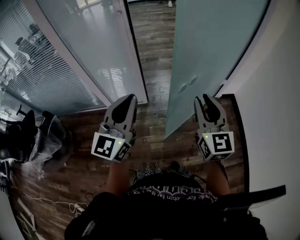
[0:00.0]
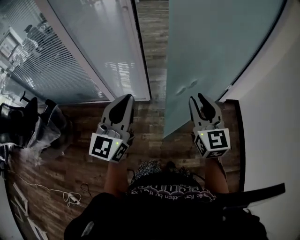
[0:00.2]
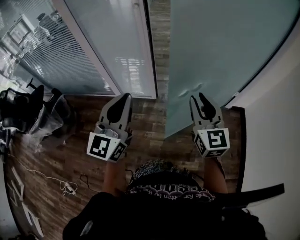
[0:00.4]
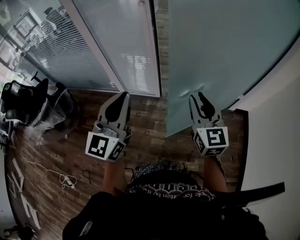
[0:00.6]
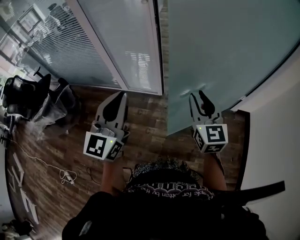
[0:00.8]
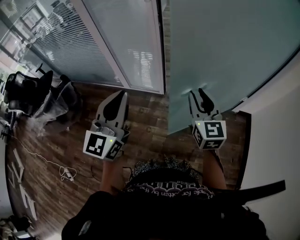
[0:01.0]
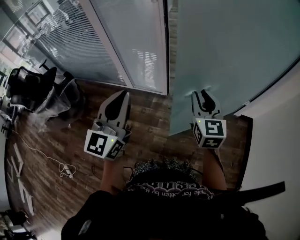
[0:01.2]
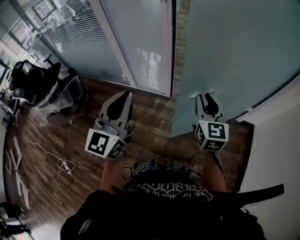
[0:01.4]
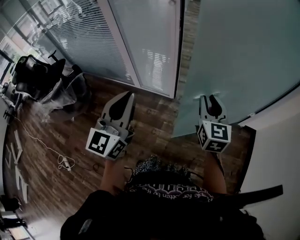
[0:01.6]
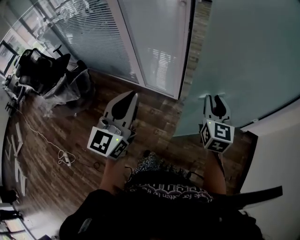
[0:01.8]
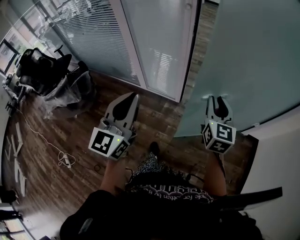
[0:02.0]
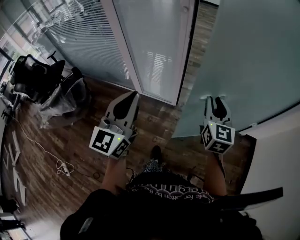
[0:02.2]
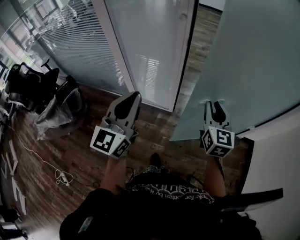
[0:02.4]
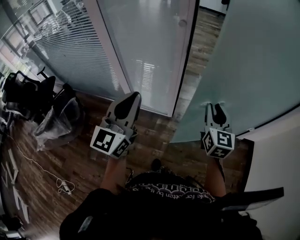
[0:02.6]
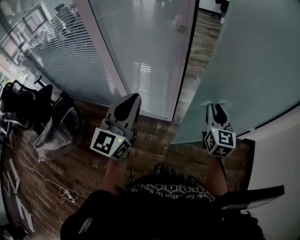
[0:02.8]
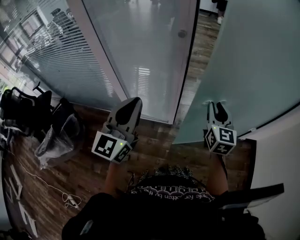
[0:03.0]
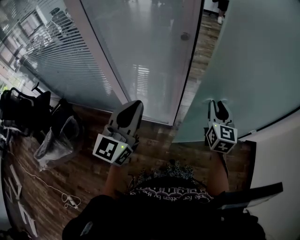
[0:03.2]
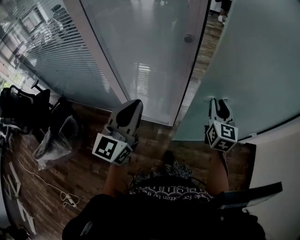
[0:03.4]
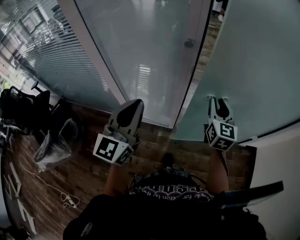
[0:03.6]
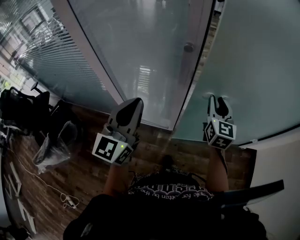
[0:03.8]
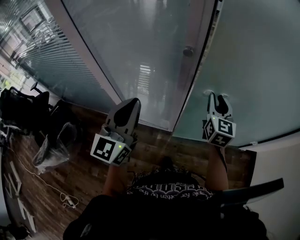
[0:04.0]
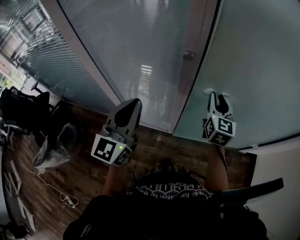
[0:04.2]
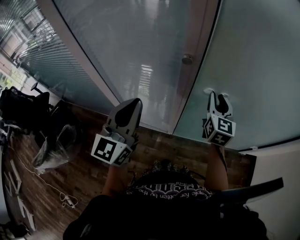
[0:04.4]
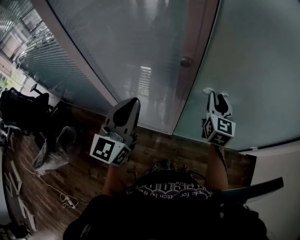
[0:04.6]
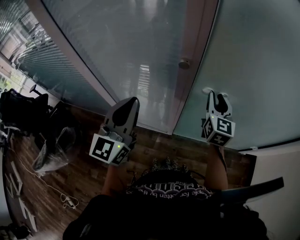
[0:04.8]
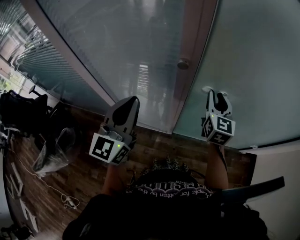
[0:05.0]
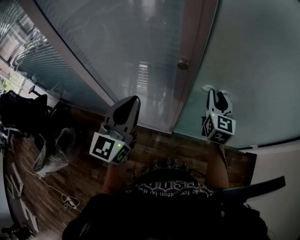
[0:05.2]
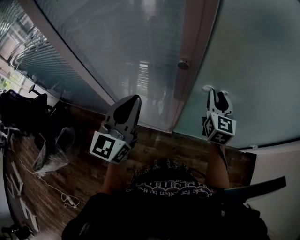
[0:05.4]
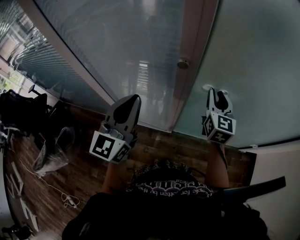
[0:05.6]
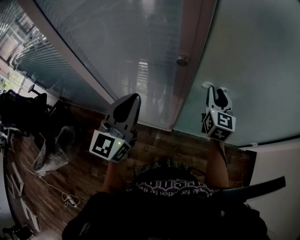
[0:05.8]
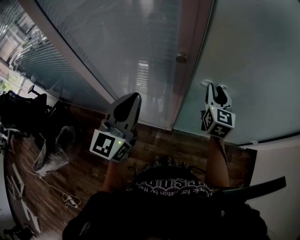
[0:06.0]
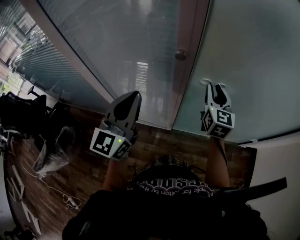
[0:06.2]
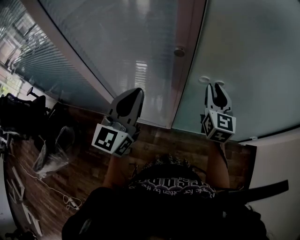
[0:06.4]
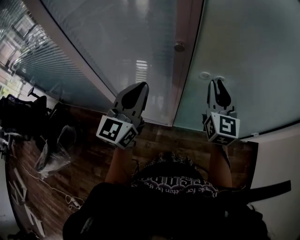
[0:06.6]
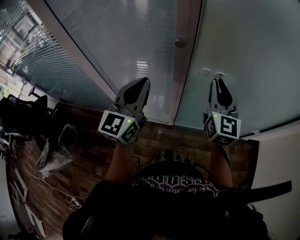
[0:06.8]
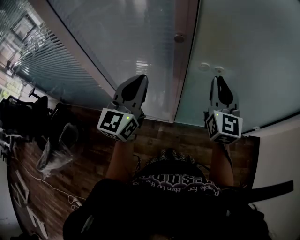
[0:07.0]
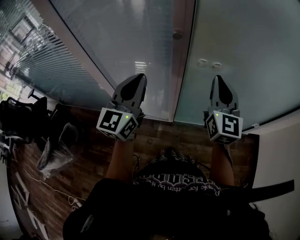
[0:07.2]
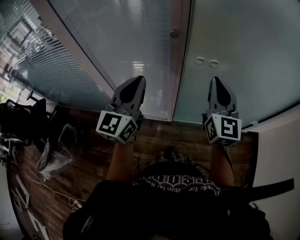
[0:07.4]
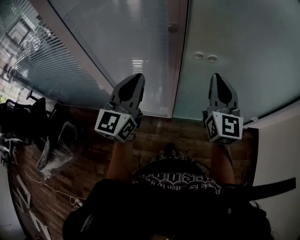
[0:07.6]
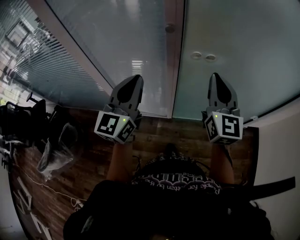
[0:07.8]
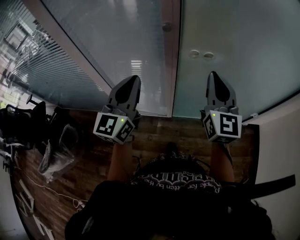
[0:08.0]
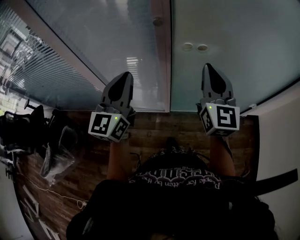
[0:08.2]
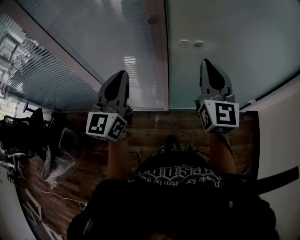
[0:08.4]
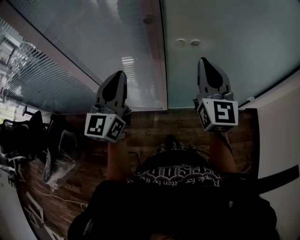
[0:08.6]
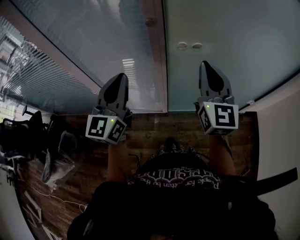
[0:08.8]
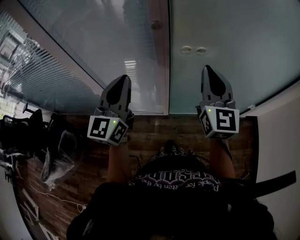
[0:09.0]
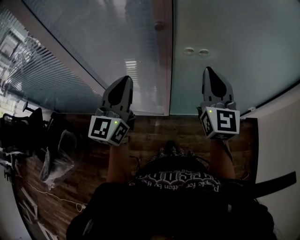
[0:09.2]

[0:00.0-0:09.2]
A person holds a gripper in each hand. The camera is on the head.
0:00.0 to 0:01.6: The left gripper changes its angle by some 20 degrees. Meanwhile the right gripper heads forward and downward, covering roughly 10 cm.
0:01.6 to 0:03.0: The left gripper heads forward and to the left, covering roughly 25 cm. The right gripper is displaced forward by some 20 cm.
0:03.0 to 0:04.6: The two grippers go some 20 cm forward.
0:04.6 to 0:06.2: The grippers make only small movements.
0:06.2 to 0:07.6: The left gripper changes place by approximately 5 cm; the right gripper moves backward and upward, about 20 cm, and closes its fingers.
0:07.6 to 0:09.2: The two grippers keep their place.

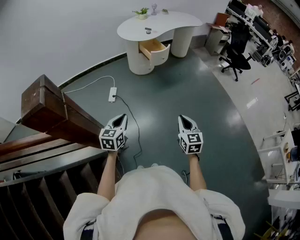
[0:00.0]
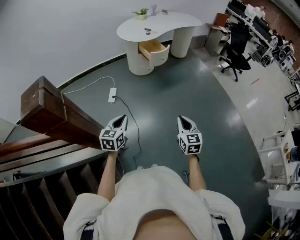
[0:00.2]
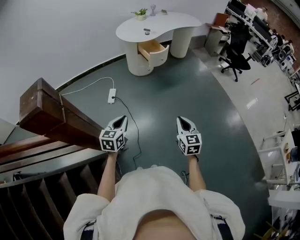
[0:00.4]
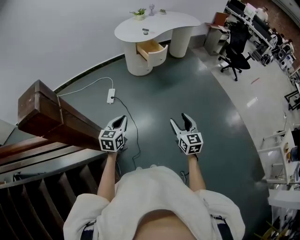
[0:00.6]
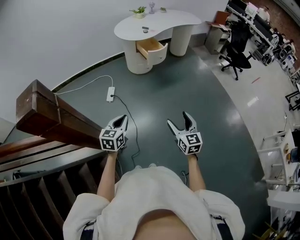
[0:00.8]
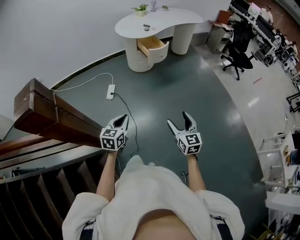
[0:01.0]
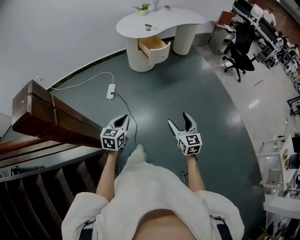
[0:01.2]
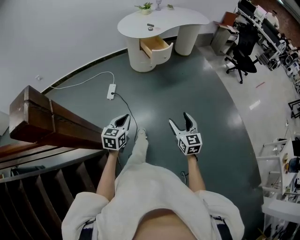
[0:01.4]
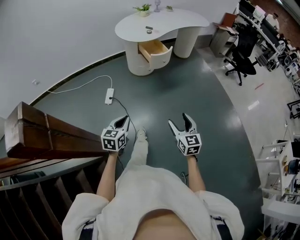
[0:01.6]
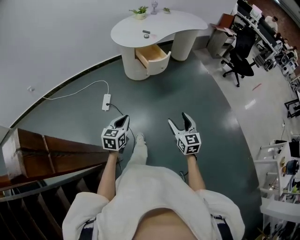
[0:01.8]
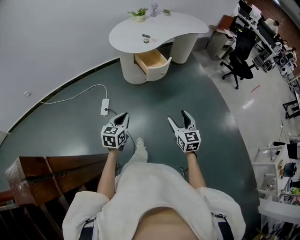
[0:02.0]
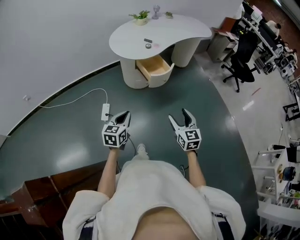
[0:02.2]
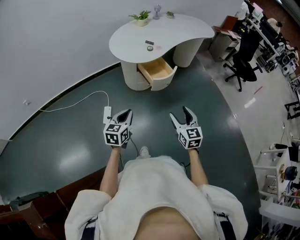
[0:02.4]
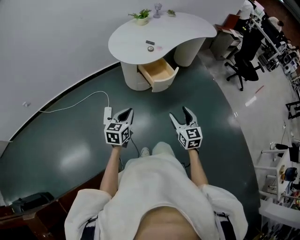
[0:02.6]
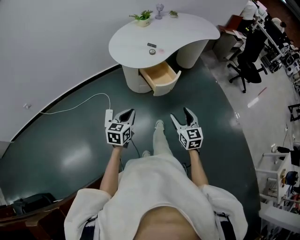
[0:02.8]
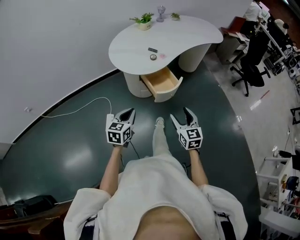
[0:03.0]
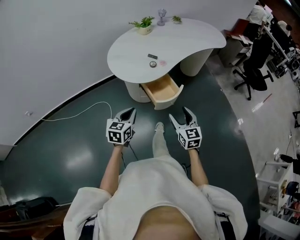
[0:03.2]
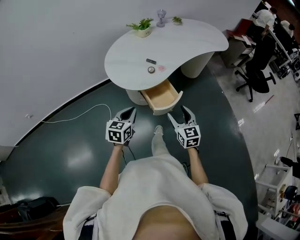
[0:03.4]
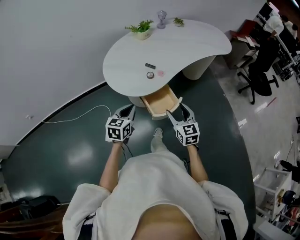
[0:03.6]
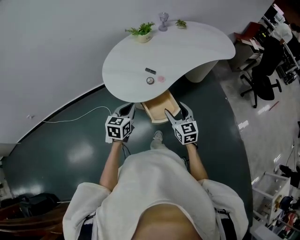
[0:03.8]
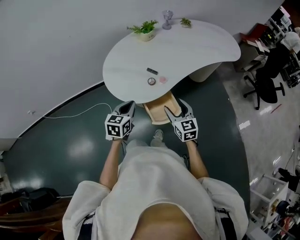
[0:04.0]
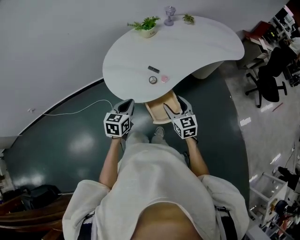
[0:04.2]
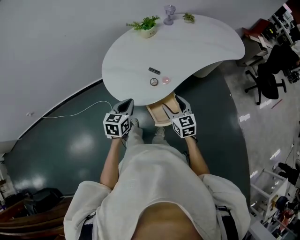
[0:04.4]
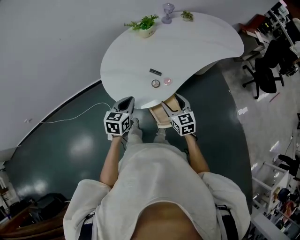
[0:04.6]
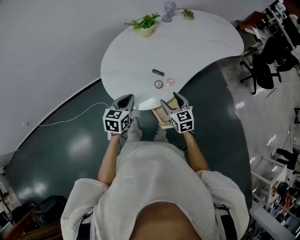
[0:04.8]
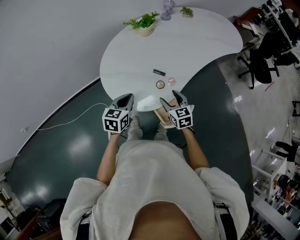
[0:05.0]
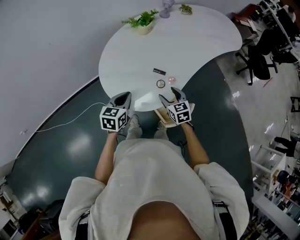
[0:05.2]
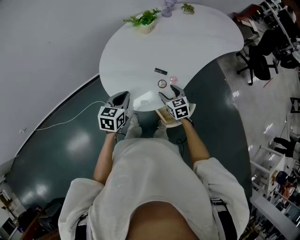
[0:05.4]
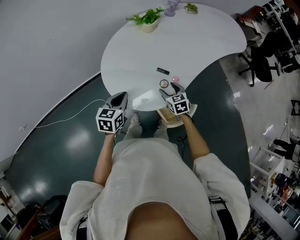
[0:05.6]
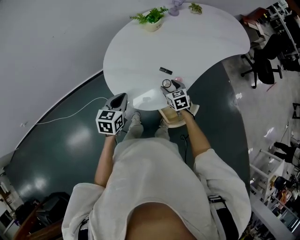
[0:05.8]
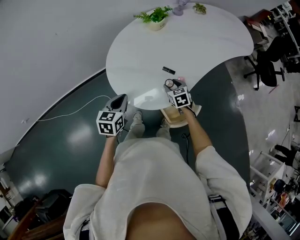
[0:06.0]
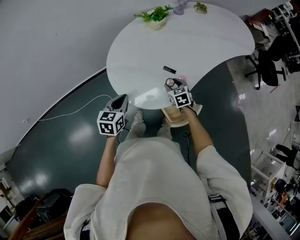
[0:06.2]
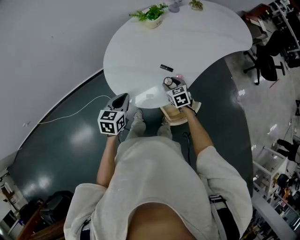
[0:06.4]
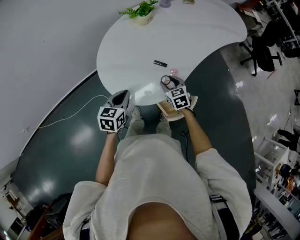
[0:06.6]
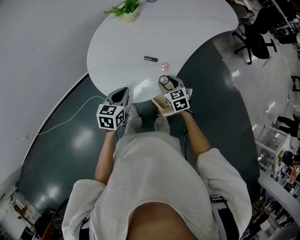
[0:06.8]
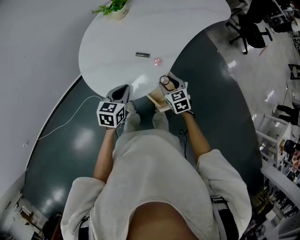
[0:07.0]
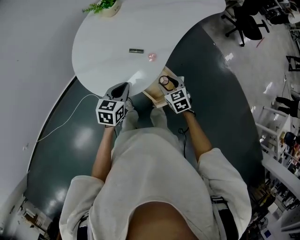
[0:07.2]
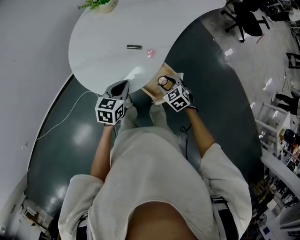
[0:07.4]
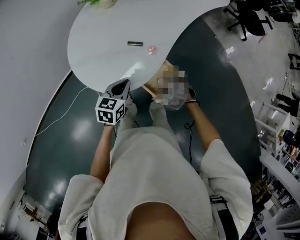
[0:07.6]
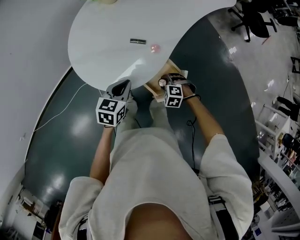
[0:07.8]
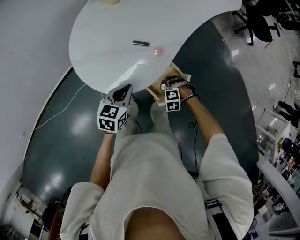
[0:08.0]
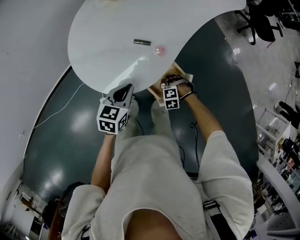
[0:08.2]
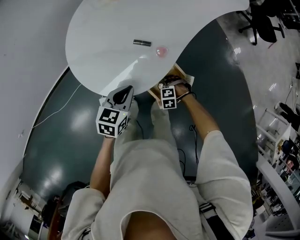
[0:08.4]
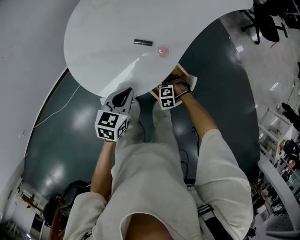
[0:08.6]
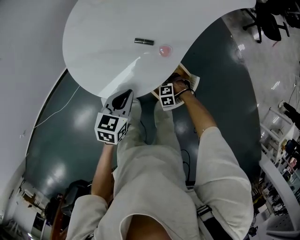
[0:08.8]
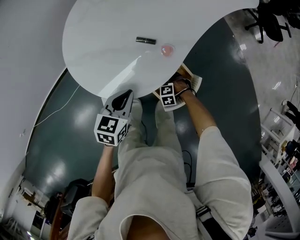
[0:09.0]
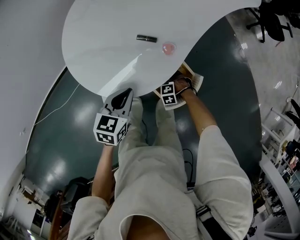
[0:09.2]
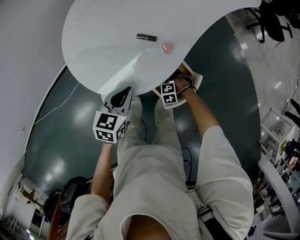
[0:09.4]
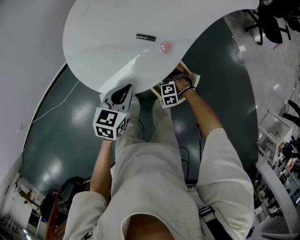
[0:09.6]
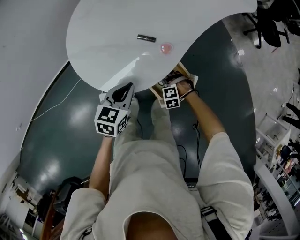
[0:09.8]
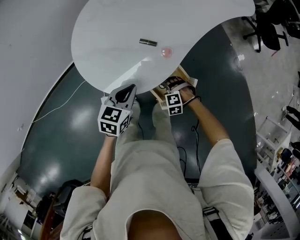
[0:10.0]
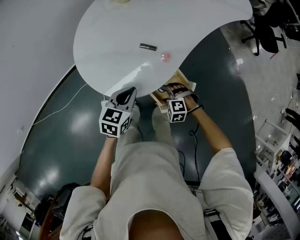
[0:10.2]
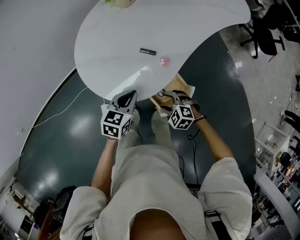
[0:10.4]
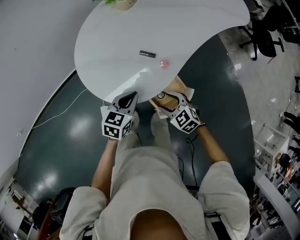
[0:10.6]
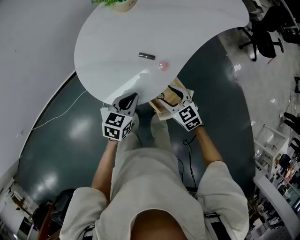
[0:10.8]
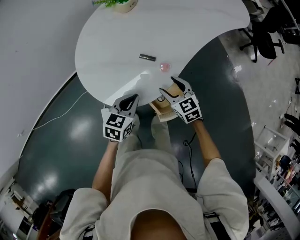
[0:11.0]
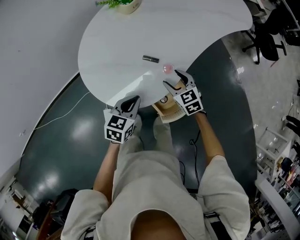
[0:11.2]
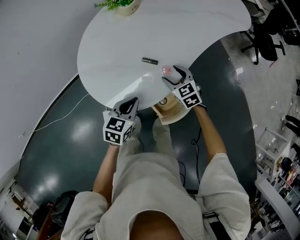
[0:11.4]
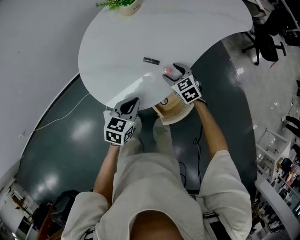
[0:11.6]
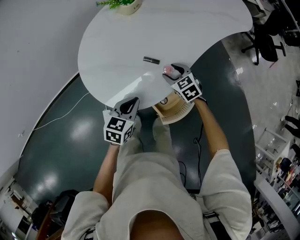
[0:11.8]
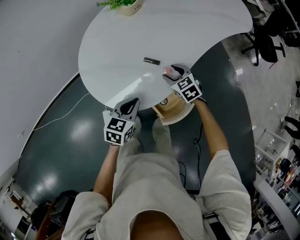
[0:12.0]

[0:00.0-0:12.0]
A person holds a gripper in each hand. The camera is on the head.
0:00.0 to 0:01.6: The left gripper moves forward and downward, about 15 cm. Meanwhile the right gripper heads forward, covering roughly 15 cm, and opens up.
0:01.6 to 0:03.0: The two grippers travel together, forward, some 50 cm.
0:03.0 to 0:04.4: The grippers both shift forward by roughly 35 cm.
0:04.4 to 0:06.0: The left gripper heads to the left and forward, covering some 15 cm, while the right gripper is displaced downward, forward and to the left by approximately 20 cm, and rotates approximately 30 degrees.
0:06.0 to 0:07.6: The right gripper shifts about 15 cm backward and to the right, and swivels some 30 degrees, while the left gripper goes some 15 cm to the right, and turns by roughly 20 degrees.
0:07.6 to 0:09.0: The left gripper moves downward, approximately 5 cm. The right gripper moves downward, roughly 20 cm, and changes its angle by roughly 40 degrees.
0:09.0 to 0:10.4: The right gripper moves upward, roughly 20 cm, and swivels approximately 40 degrees.
0:10.4 to 0:12.0: The right gripper moves forward, approximately 20 cm, and turns by approximately 30 degrees.

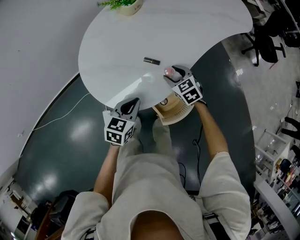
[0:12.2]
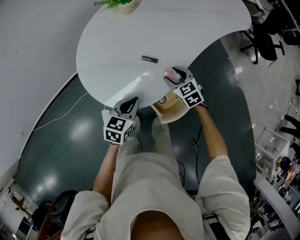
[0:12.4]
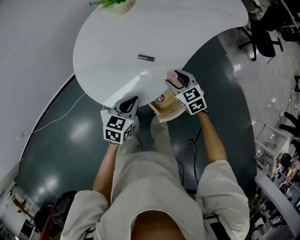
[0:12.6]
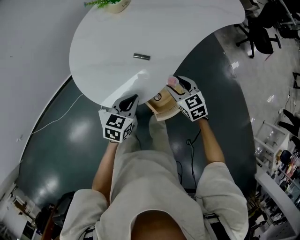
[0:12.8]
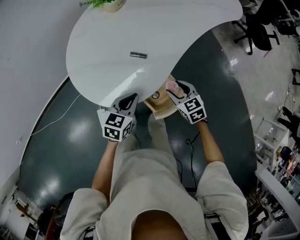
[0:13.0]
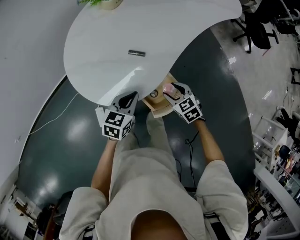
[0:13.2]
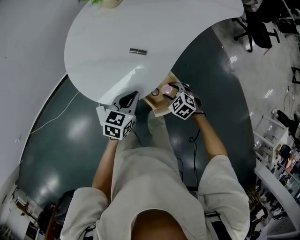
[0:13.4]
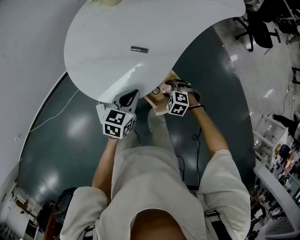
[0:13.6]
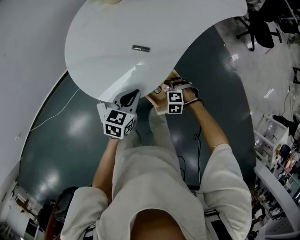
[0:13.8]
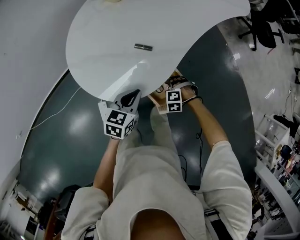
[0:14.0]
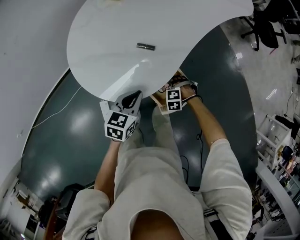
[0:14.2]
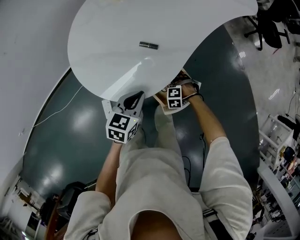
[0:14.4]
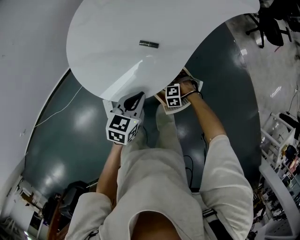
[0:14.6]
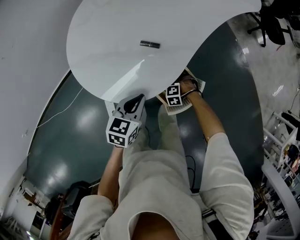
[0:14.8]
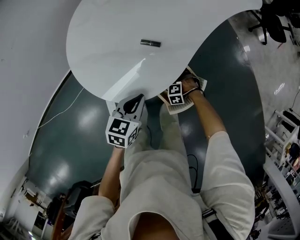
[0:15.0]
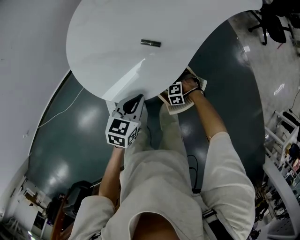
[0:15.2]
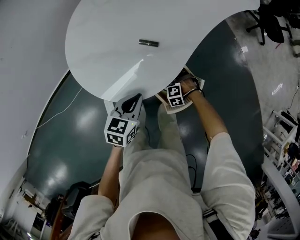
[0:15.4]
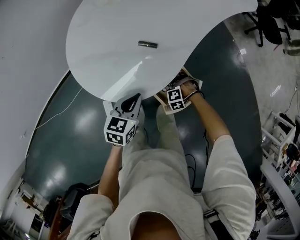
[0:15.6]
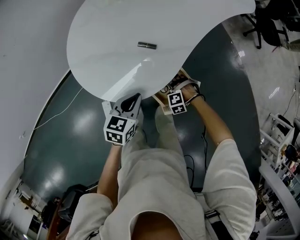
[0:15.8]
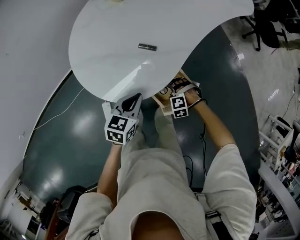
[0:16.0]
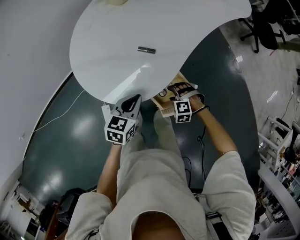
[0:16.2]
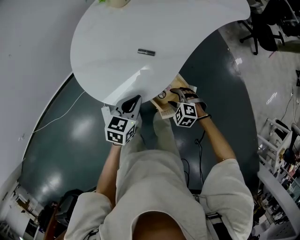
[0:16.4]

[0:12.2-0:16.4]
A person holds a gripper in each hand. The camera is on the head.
0:12.2 to 0:13.6: The right gripper moves roughly 20 cm, and changes its angle by roughly 40 degrees.
0:13.6 to 0:15.0: The right gripper is displaced downward by roughly 15 cm, and rotates approximately 30 degrees.
0:15.0 to 0:16.4: The right gripper goes some 15 cm upward, and changes its angle by about 30 degrees.
